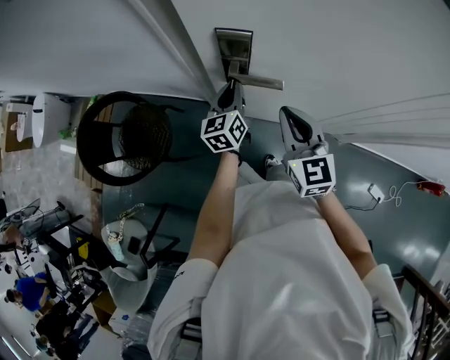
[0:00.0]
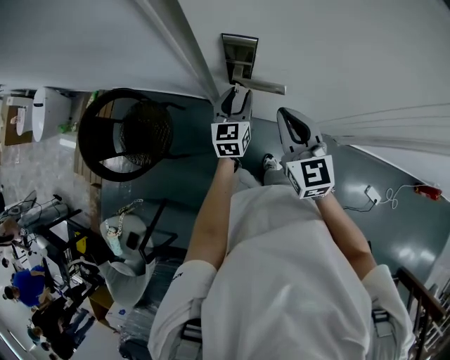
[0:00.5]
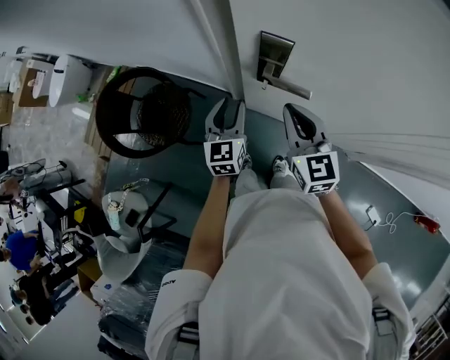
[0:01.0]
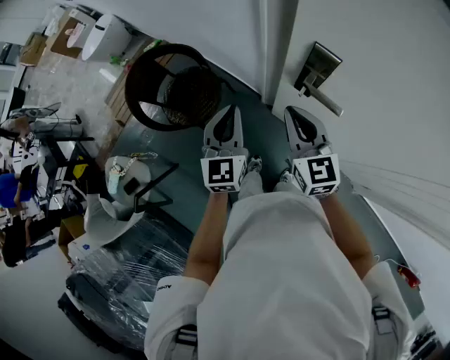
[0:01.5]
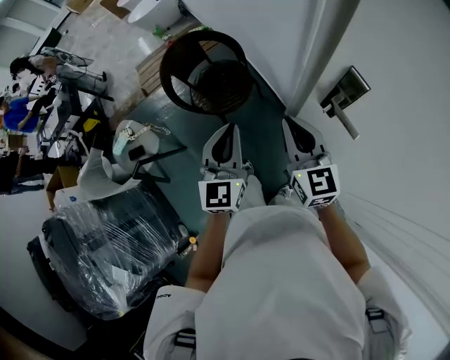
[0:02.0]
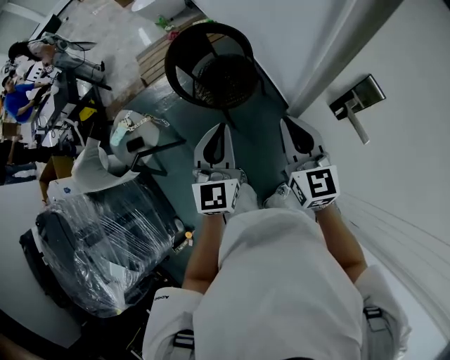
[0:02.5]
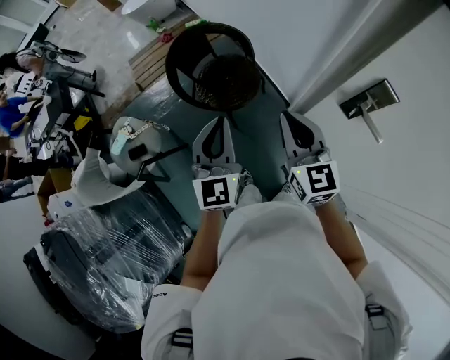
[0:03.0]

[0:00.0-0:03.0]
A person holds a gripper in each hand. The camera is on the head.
0.0 to 1.5 s: The left gripper changes place by some 25 cm, rotates about 40 degrees, and opens, then closes again. Meanwhile the right gripper ends up some 15 cm from where it was, and swivels some 30 degrees.
1.5 to 3.0 s: The grippers both shift to the left by some 20 cm. The left gripper turns by some 20 degrees.

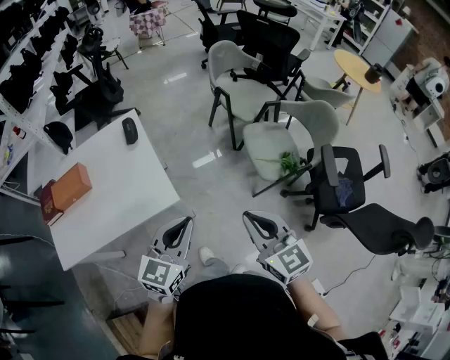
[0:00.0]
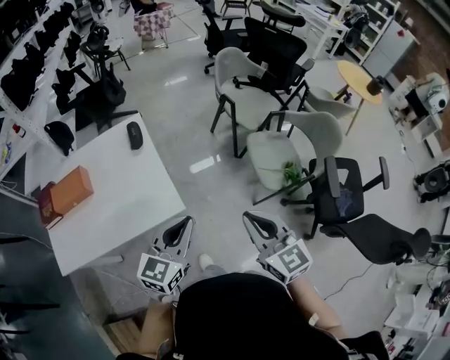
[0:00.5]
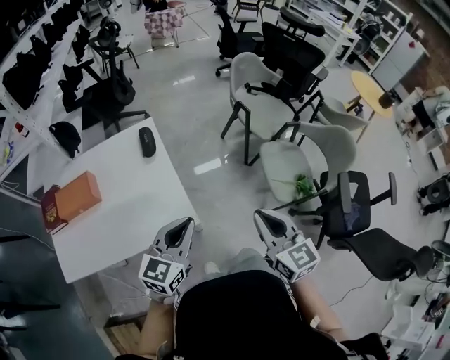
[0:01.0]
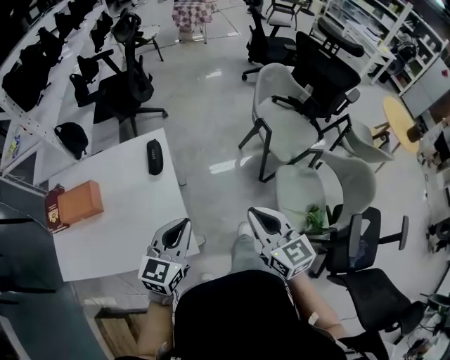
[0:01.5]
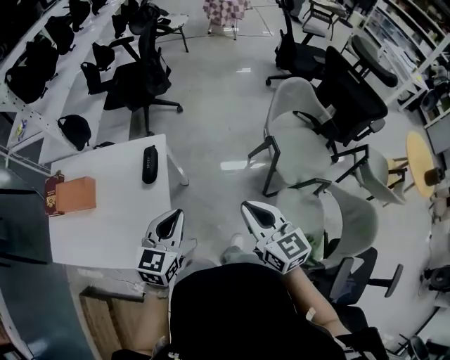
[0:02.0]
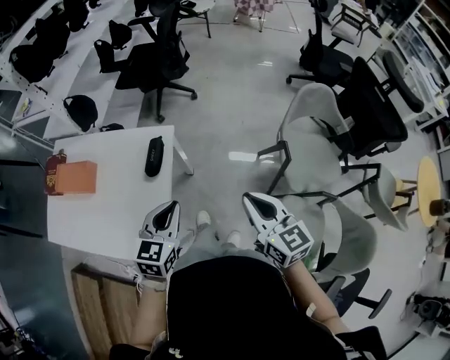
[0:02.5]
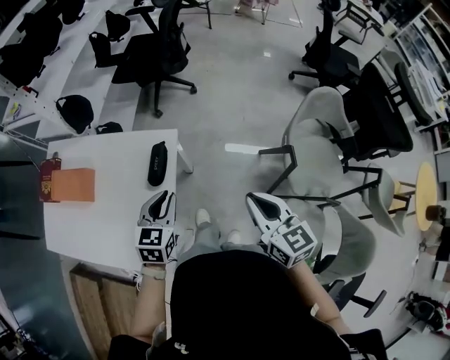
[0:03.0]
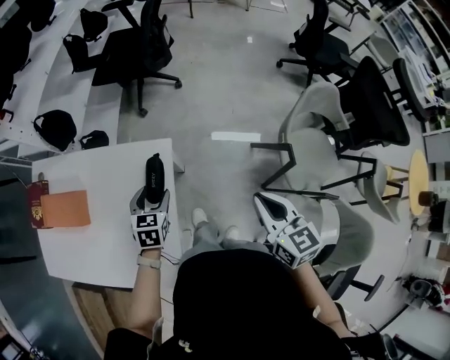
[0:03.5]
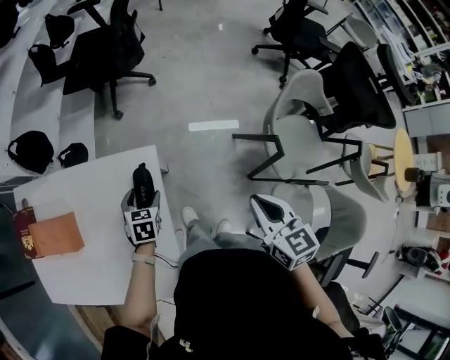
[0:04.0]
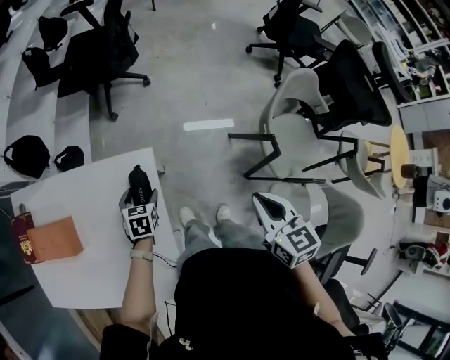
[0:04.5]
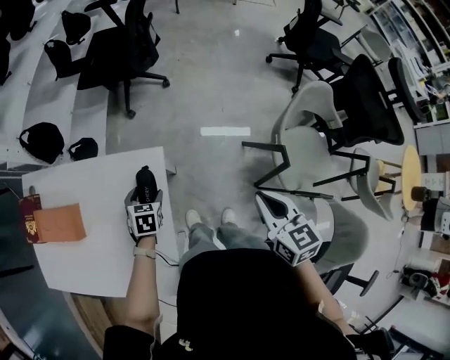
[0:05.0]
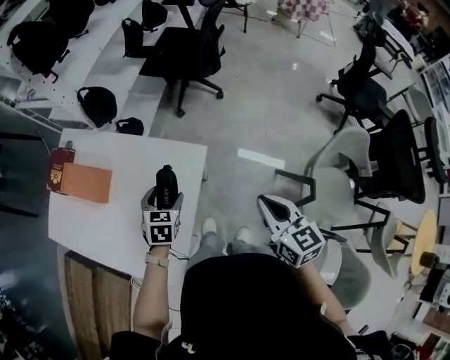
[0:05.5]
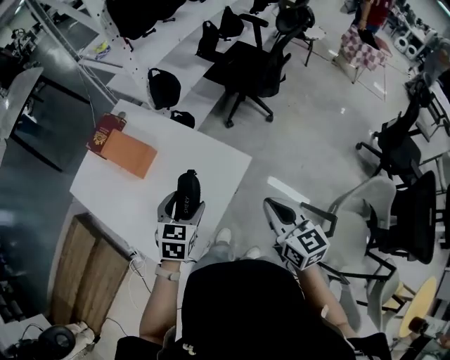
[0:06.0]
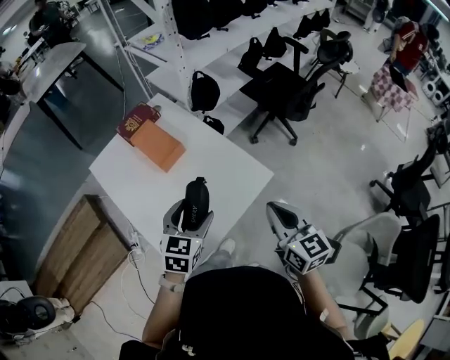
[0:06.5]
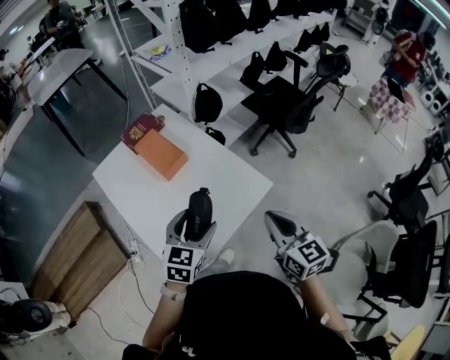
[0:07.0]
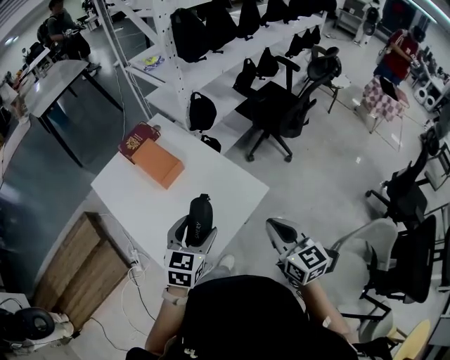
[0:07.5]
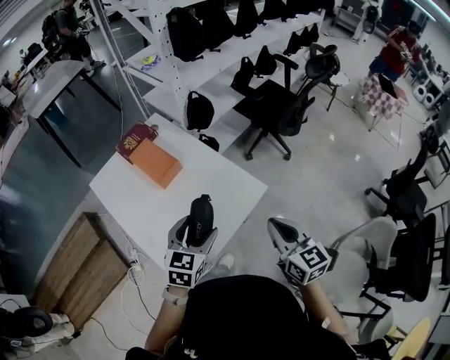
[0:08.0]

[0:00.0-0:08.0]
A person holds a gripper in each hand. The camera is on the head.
0.0 to 2.0 s: The right gripper shifts by roughly 40 cm, and rotates approximately 20 degrees, while the left gripper changes place by approximately 40 cm, and rotates about 30 degrees.
2.0 to 4.0 s: The left gripper is displaced forward, downward and to the left by some 40 cm, tips its fingers downward by approximately 30 degrees, and opens up. The right gripper shifts about 20 cm forward, and rotates roughly 20 degrees.
4.0 to 6.0 s: The left gripper is displaced upward by roughly 20 cm, and turns by approximately 30 degrees. The right gripper ends up some 15 cm from where it was, and turns by roughly 40 degrees.
6.0 to 8.0 s: The left gripper heads upward and backward, covering approximately 10 cm.

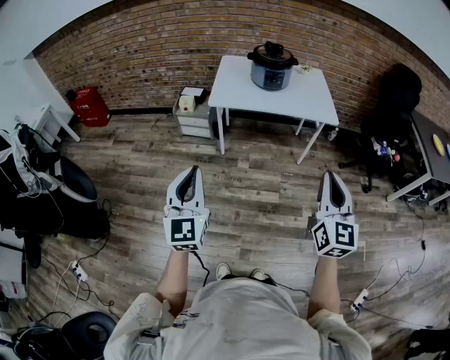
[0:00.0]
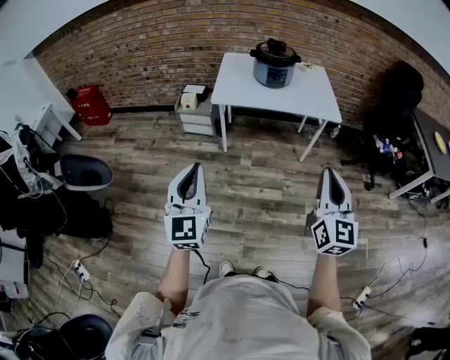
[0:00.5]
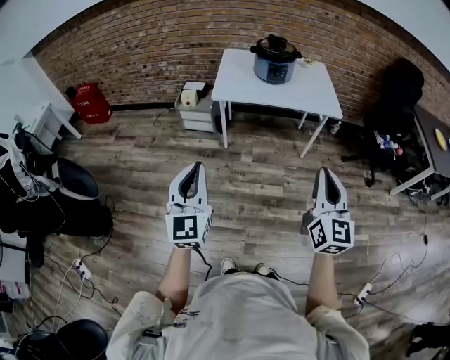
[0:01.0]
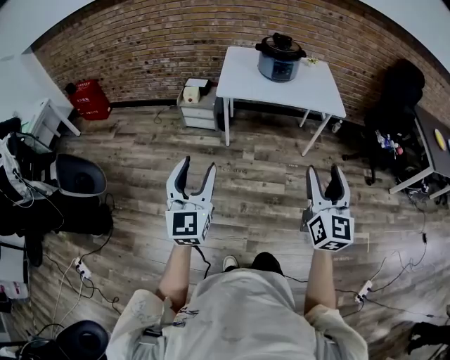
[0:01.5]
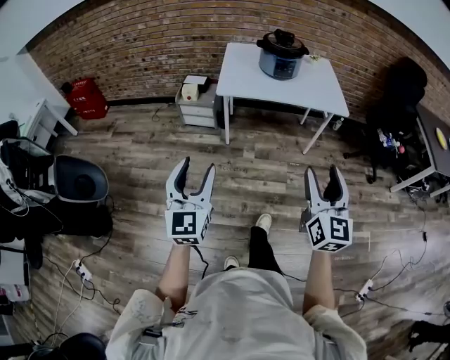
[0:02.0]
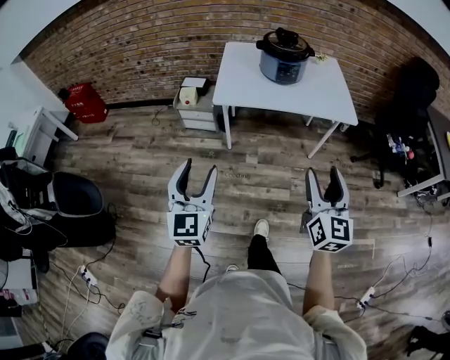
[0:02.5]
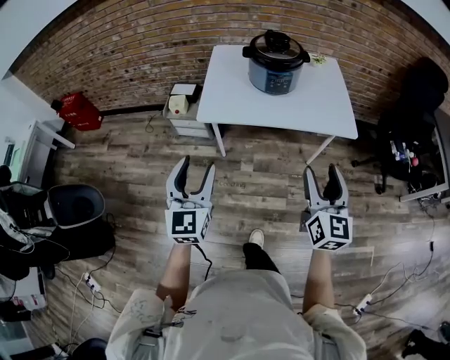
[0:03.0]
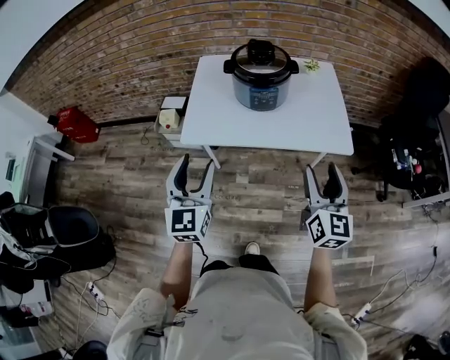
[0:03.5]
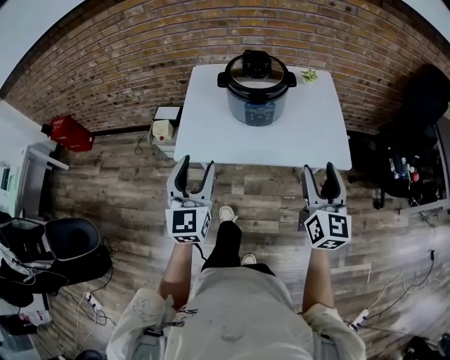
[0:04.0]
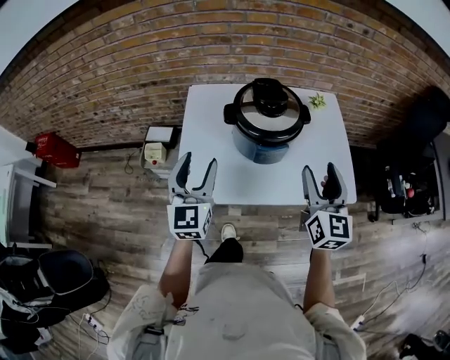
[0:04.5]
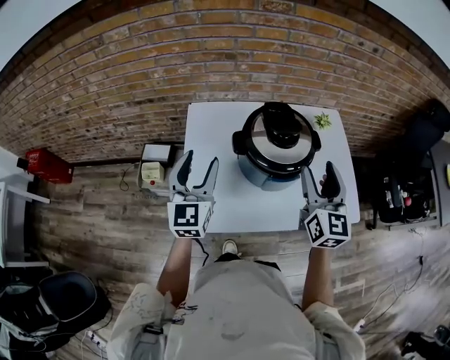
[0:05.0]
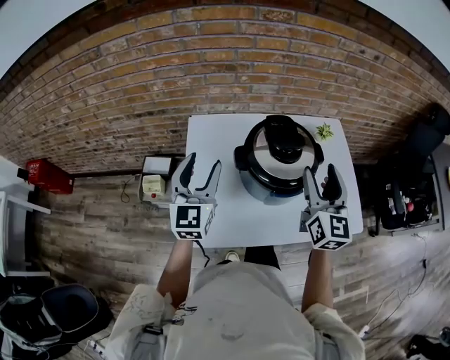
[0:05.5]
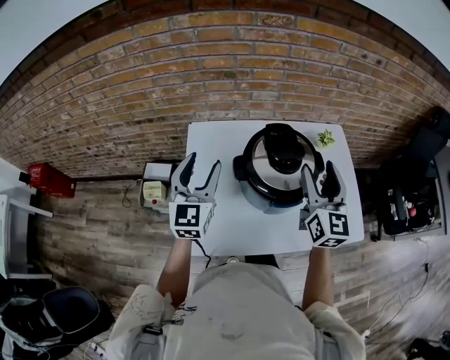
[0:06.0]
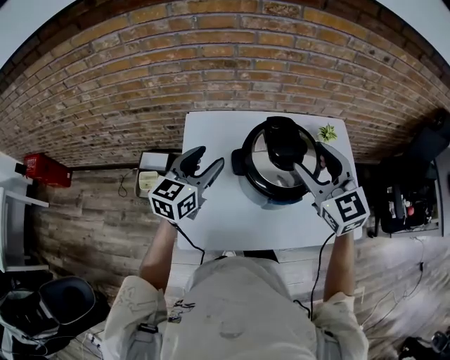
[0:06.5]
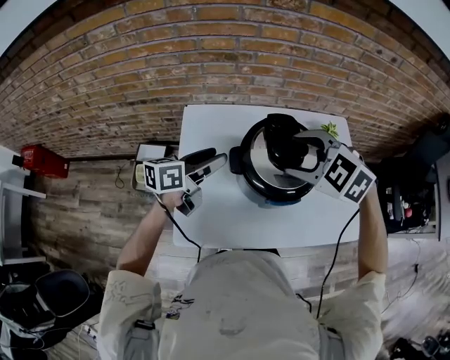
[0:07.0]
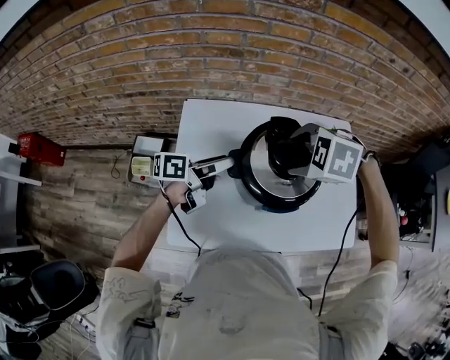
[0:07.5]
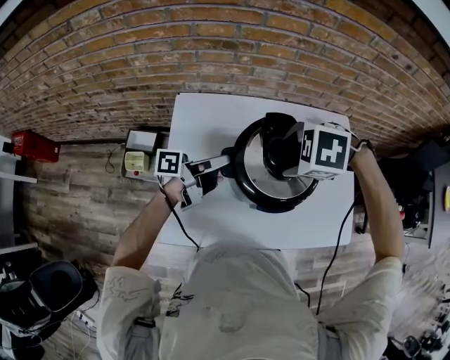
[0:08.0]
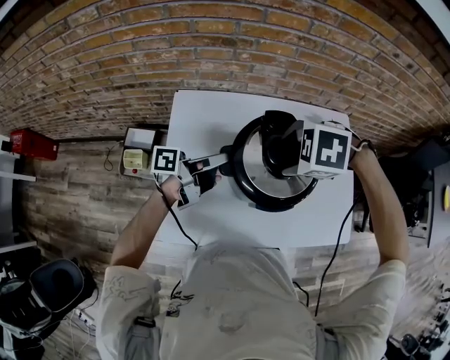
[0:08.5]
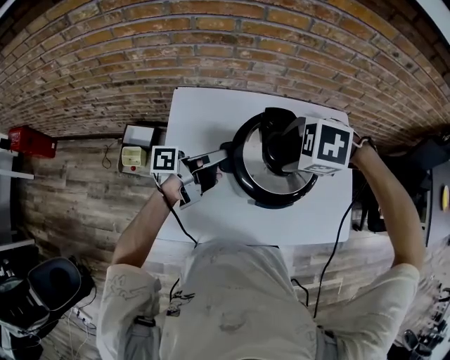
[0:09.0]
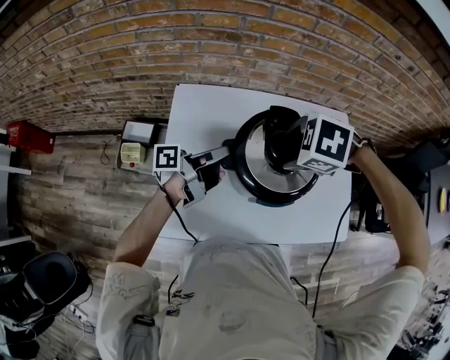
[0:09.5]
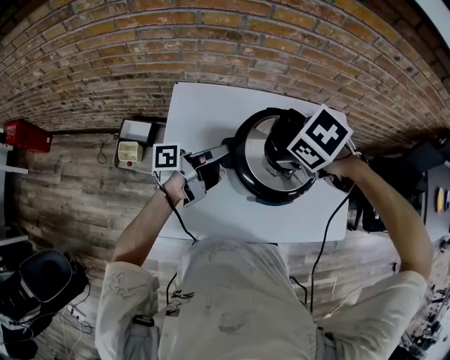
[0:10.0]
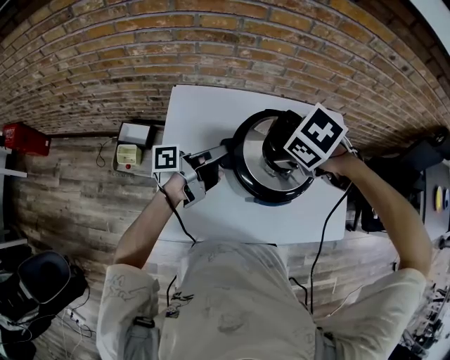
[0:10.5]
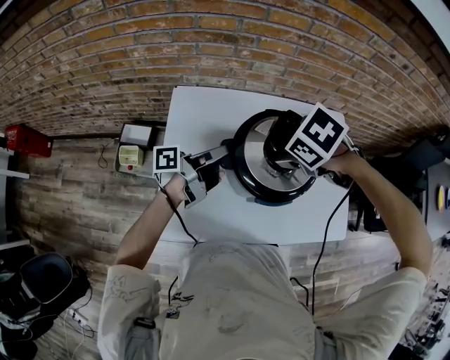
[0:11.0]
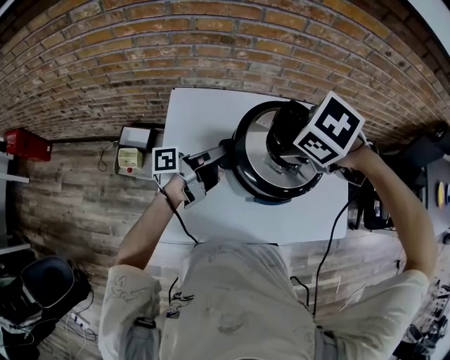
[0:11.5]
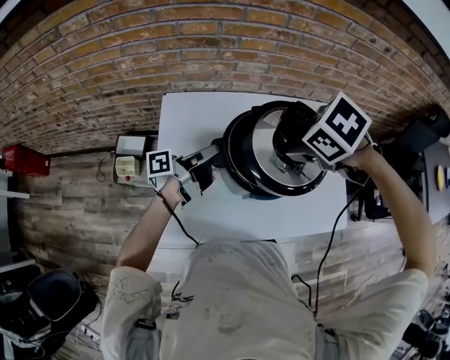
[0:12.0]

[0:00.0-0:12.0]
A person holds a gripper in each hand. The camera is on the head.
0.0 to 2.0 s: Both grippers move to the left, some 5 cm. The right gripper opens up; the left gripper opens.
2.0 to 4.0 s: The pair of grippers is taken forward, some 50 cm.
4.0 to 6.0 s: The grippers both shift forward by some 35 cm.
6.0 to 8.0 s: The right gripper moves about 15 cm, and tips its fingers downward by some 80 degrees; the left gripper goes approximately 10 cm downward, and rolls counterclockwise, seen from behind, by about 90 degrees.
8.0 to 10.0 s: The right gripper changes its angle by approximately 30 degrees. The left gripper closes its fingers.
10.0 to 12.0 s: The right gripper travels upward by approximately 5 cm.

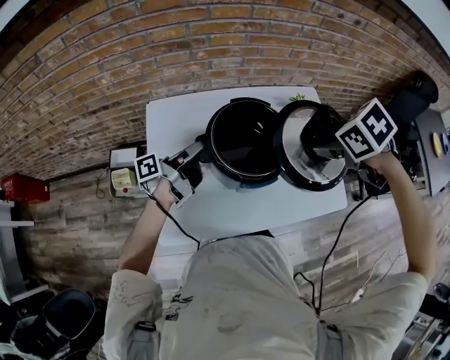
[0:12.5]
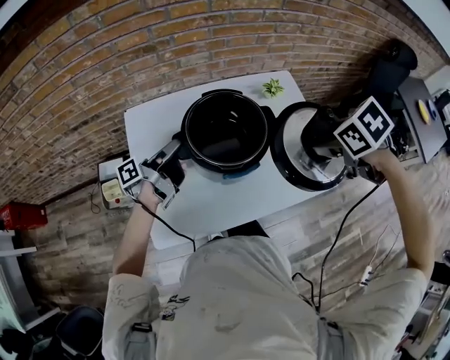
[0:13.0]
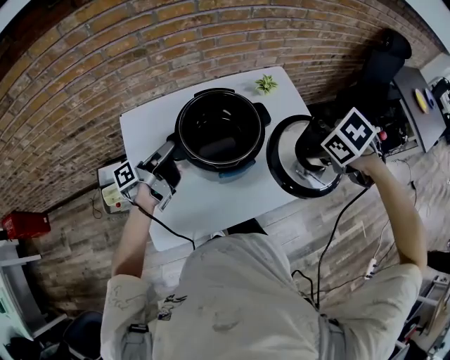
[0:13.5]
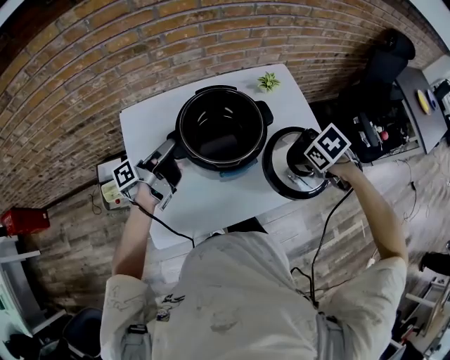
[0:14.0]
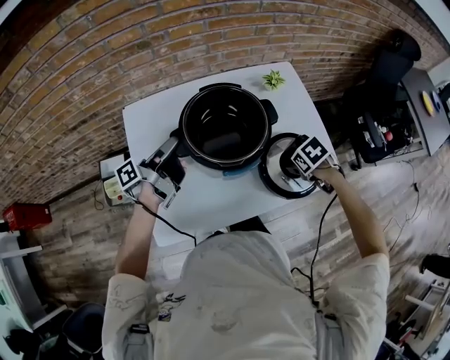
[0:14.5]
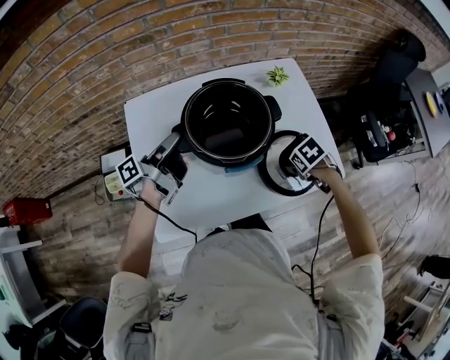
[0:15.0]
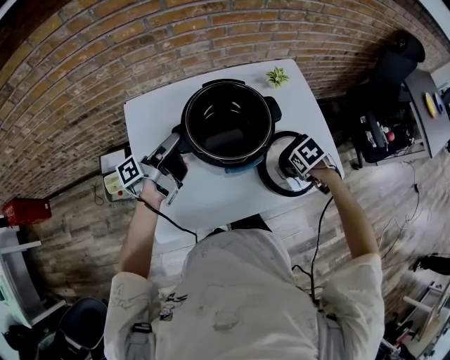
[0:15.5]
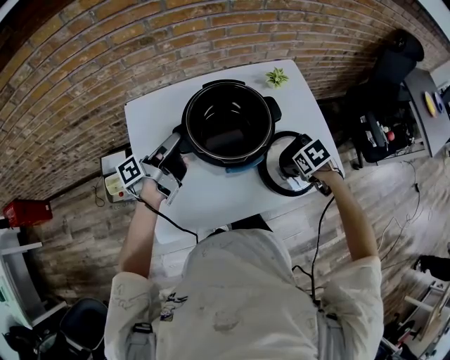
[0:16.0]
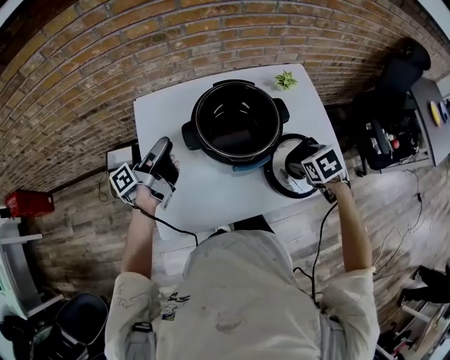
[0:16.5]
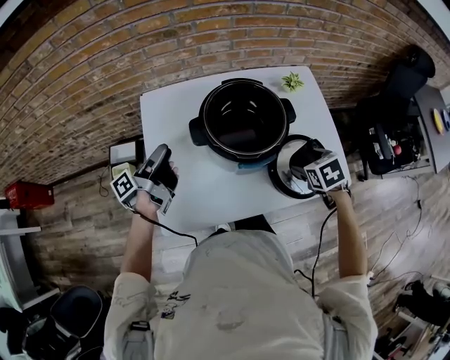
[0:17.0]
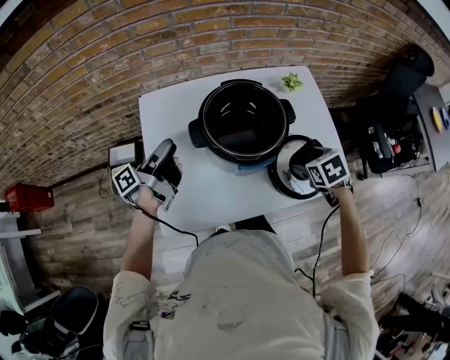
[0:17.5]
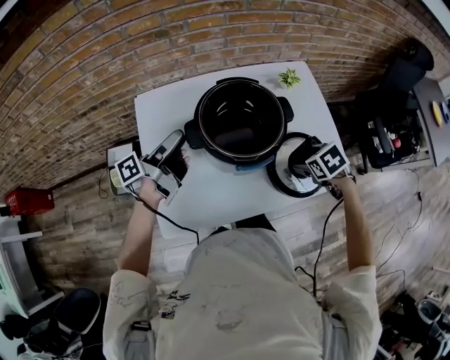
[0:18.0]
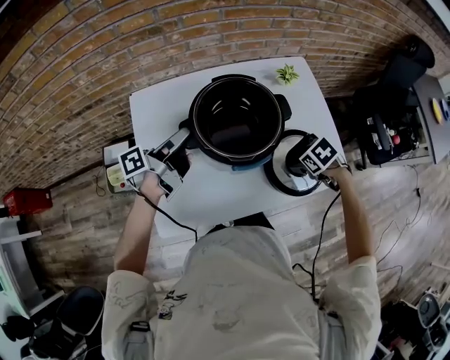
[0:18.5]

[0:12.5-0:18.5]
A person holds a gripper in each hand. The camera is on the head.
12.5 to 14.5 s: The right gripper moves downward, approximately 25 cm.
14.5 to 16.5 s: The left gripper changes place by some 5 cm, and opens its fingers.
16.5 to 18.5 s: The left gripper ends up approximately 5 cm from where it was; the right gripper moves downward, roughly 5 cm.
